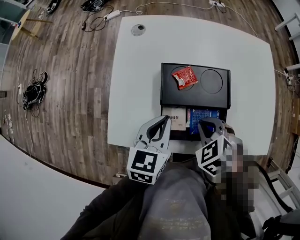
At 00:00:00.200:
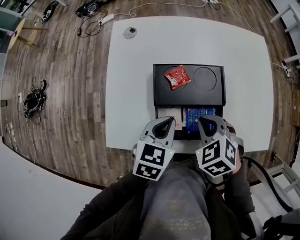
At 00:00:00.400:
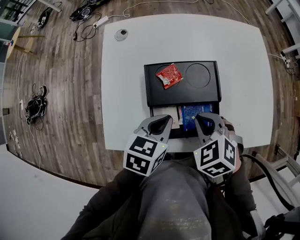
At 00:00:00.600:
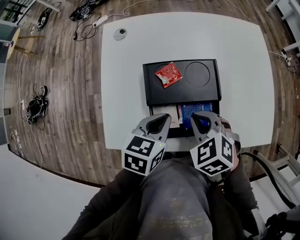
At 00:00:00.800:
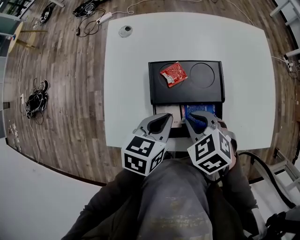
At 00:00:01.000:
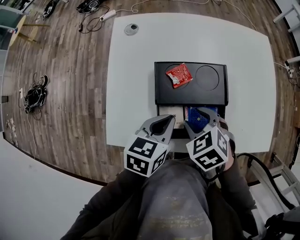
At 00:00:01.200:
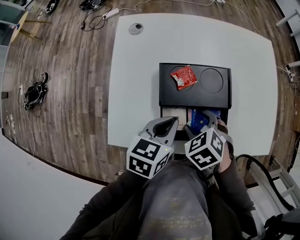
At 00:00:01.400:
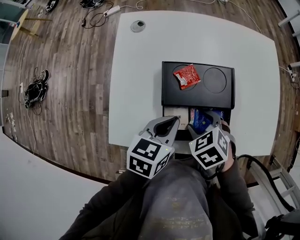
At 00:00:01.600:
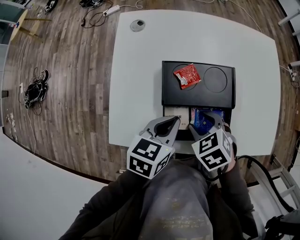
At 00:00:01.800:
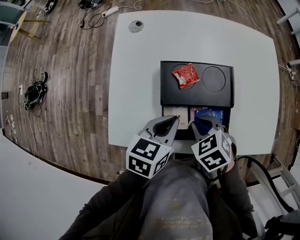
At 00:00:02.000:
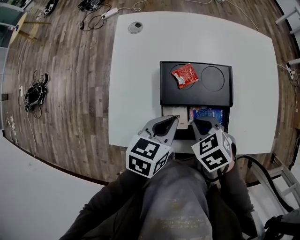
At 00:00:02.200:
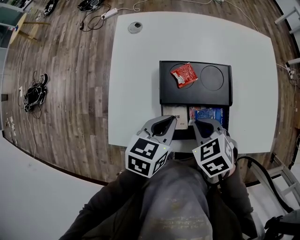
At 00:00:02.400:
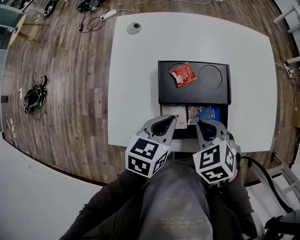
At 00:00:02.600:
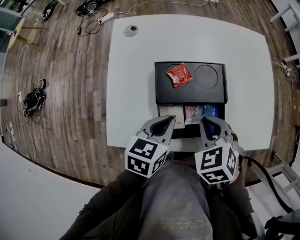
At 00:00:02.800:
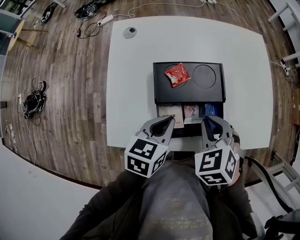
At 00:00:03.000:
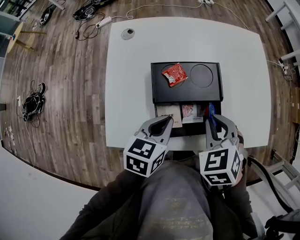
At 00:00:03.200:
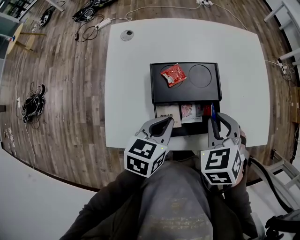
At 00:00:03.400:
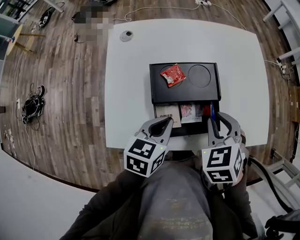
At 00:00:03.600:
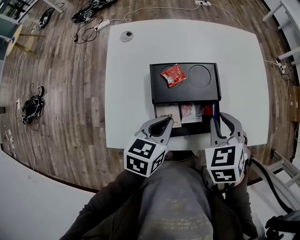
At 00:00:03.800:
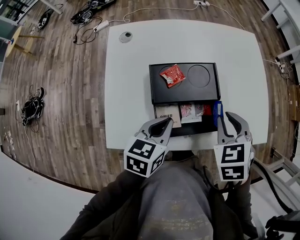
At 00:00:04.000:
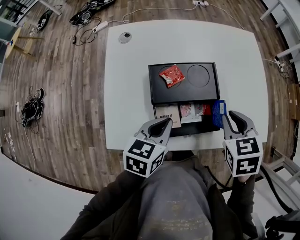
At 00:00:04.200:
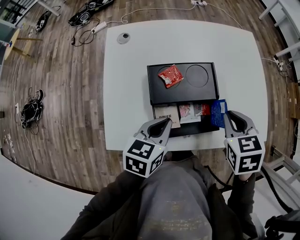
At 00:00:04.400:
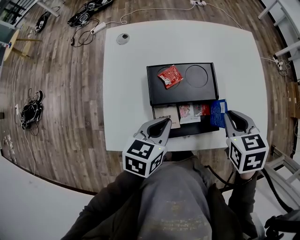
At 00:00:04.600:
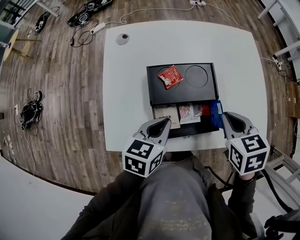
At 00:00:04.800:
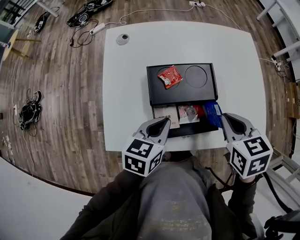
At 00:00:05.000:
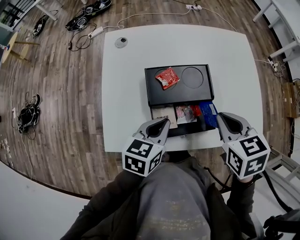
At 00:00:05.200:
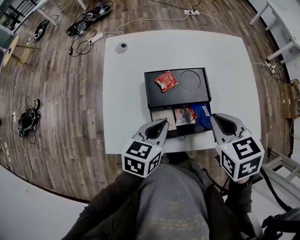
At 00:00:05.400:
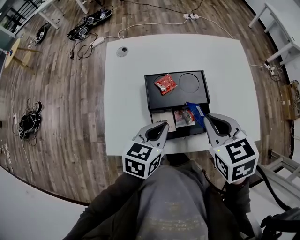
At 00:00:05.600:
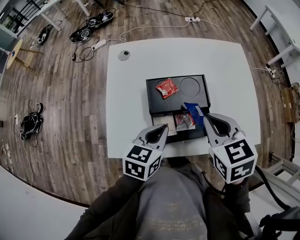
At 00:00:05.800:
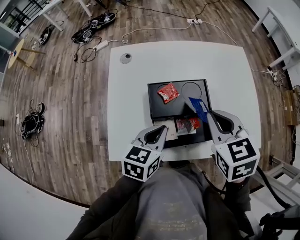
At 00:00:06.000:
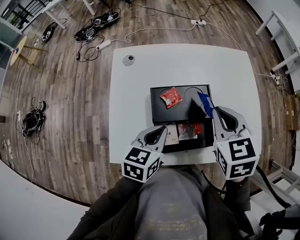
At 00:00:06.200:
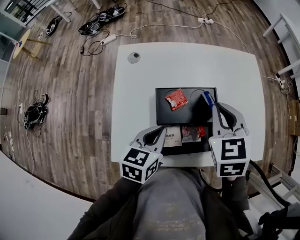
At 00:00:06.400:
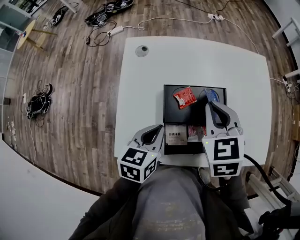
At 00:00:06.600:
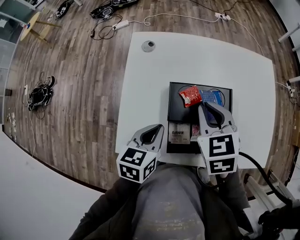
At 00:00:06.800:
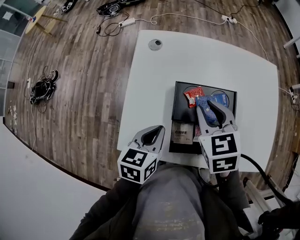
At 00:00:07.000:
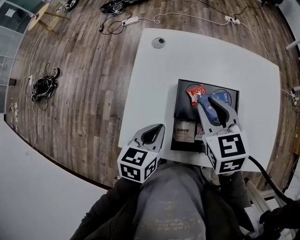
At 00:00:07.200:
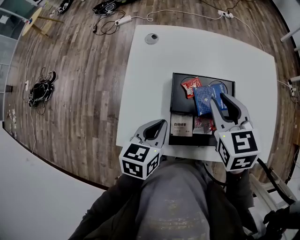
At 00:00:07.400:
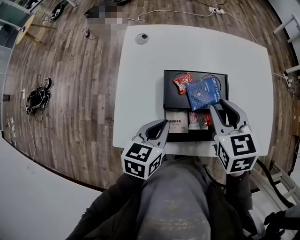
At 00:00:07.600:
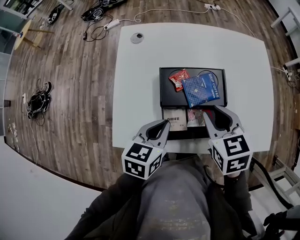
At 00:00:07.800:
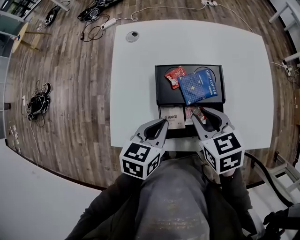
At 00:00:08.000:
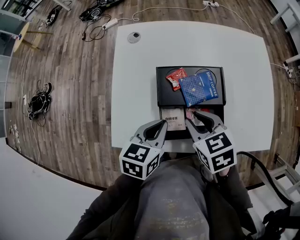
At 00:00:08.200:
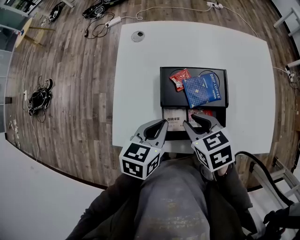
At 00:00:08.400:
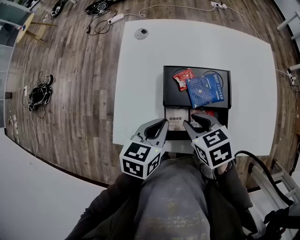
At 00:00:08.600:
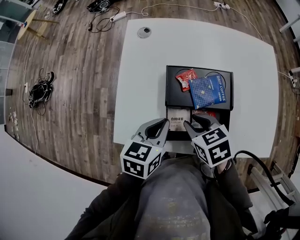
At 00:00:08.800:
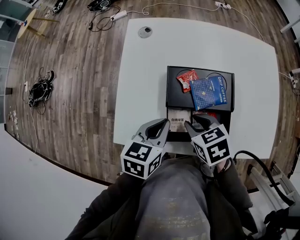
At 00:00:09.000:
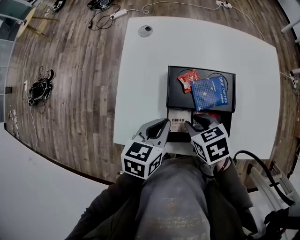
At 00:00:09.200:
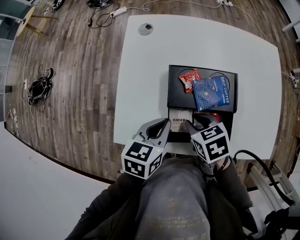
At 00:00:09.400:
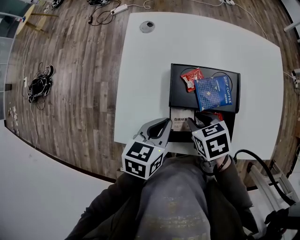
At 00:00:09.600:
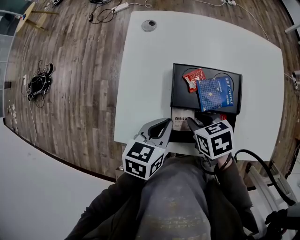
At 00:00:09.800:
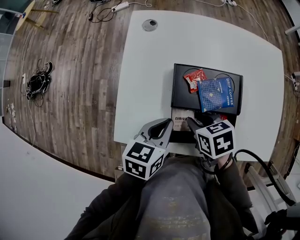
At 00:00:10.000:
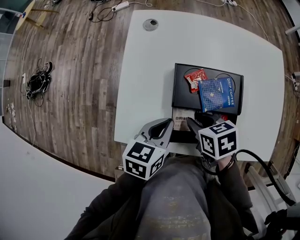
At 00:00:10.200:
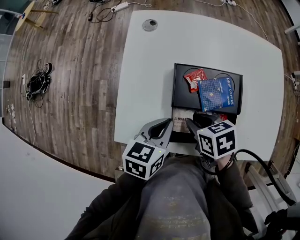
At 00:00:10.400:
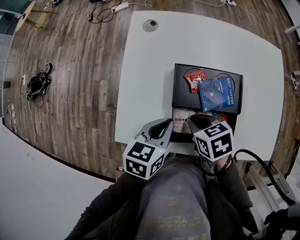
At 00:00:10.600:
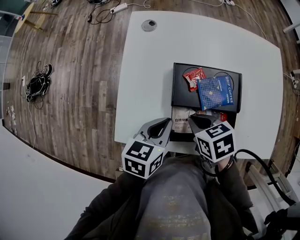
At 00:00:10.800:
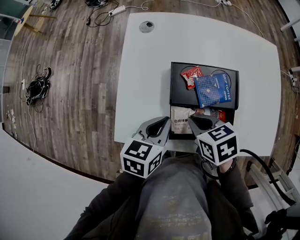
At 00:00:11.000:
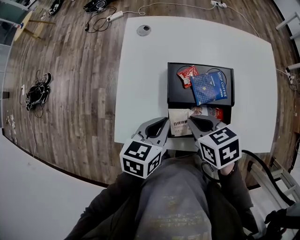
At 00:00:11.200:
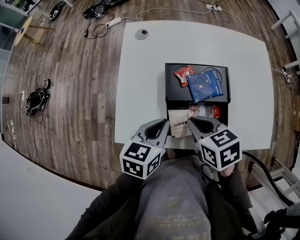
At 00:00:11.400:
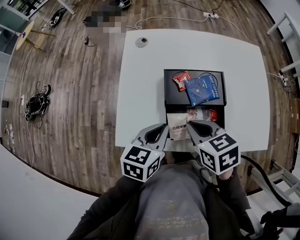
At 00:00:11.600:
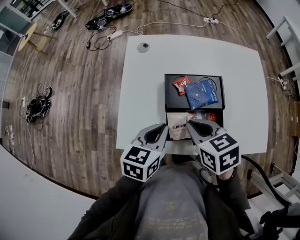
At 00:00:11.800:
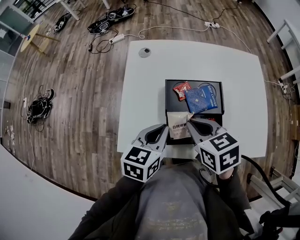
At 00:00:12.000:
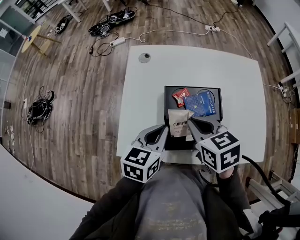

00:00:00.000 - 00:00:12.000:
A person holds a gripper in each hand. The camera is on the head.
00:00:00.000 - 00:00:01.600: The right gripper opens up.
00:00:01.600 - 00:00:03.000: The right gripper goes some 10 cm upward and to the right, rotates about 20 degrees, and closes.
00:00:03.000 - 00:00:04.400: The right gripper shifts some 5 cm to the right, and rotates about 30 degrees.
00:00:04.400 - 00:00:06.000: The right gripper is displaced upward, to the left and forward by about 10 cm.
00:00:06.000 - 00:00:07.600: The left gripper reaches roughly 10 cm to the left, then returns; the right gripper travels downward by some 10 cm, goes to the left and returns, some 10 cm each way, and opens its fingers.
00:00:07.600 - 00:00:09.000: The right gripper is displaced downward and to the left by roughly 10 cm, and turns by approximately 20 degrees.
00:00:09.000 - 00:00:10.400: The grippers make only small movements.
00:00:10.400 - 00:00:12.000: The right gripper moves upward, roughly 15 cm, and changes its angle by some 20 degrees. The left gripper travels upward by roughly 5 cm.

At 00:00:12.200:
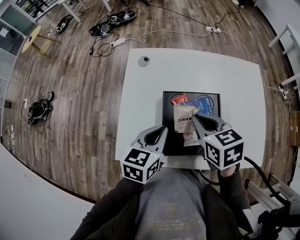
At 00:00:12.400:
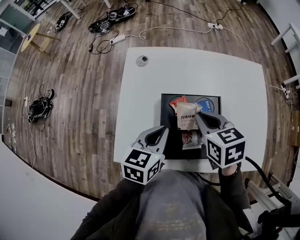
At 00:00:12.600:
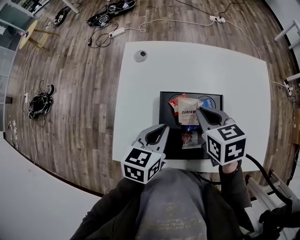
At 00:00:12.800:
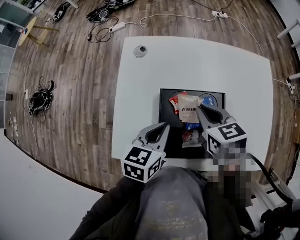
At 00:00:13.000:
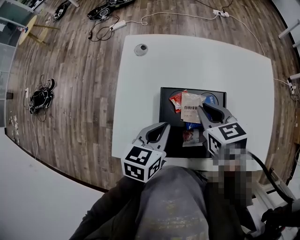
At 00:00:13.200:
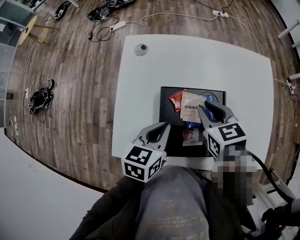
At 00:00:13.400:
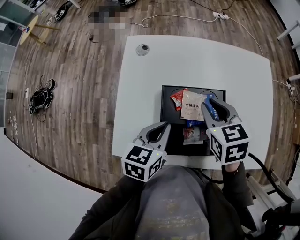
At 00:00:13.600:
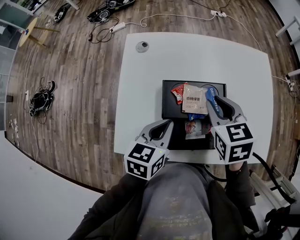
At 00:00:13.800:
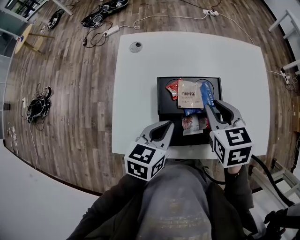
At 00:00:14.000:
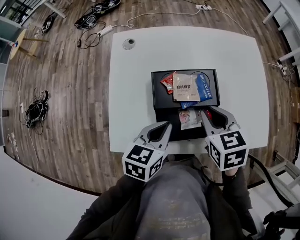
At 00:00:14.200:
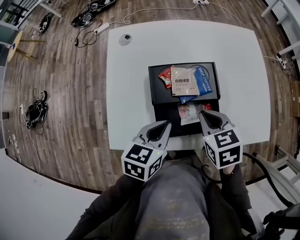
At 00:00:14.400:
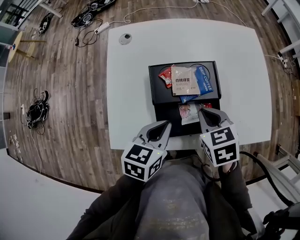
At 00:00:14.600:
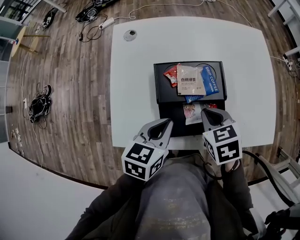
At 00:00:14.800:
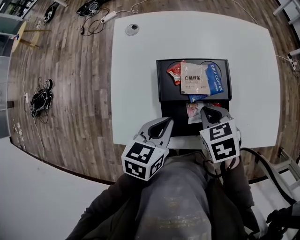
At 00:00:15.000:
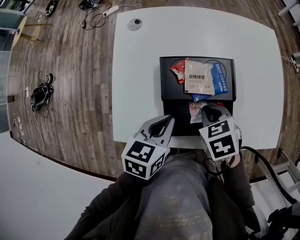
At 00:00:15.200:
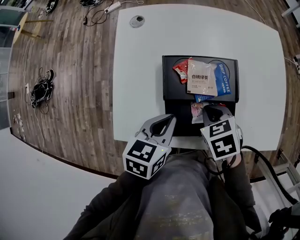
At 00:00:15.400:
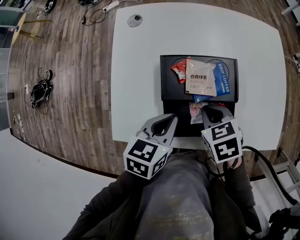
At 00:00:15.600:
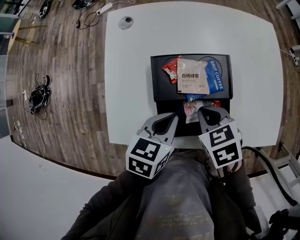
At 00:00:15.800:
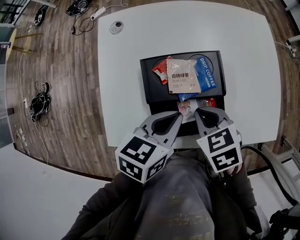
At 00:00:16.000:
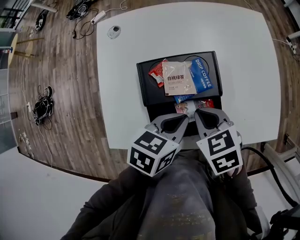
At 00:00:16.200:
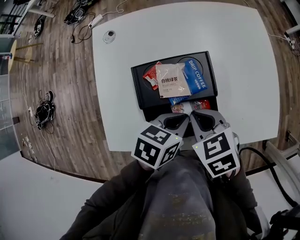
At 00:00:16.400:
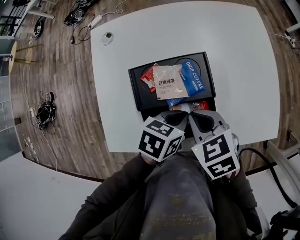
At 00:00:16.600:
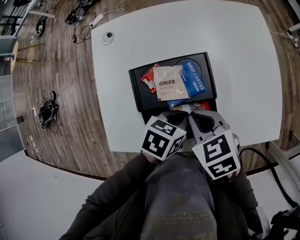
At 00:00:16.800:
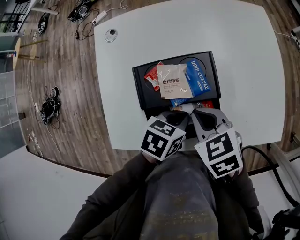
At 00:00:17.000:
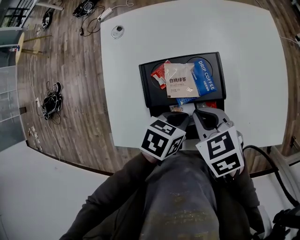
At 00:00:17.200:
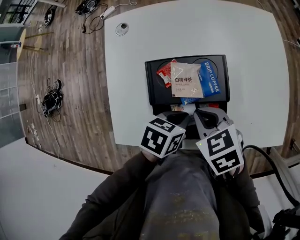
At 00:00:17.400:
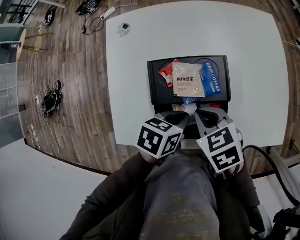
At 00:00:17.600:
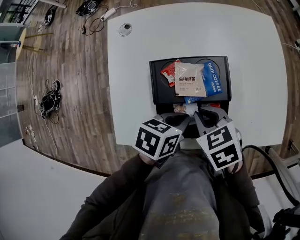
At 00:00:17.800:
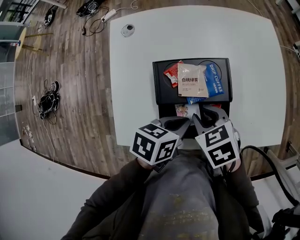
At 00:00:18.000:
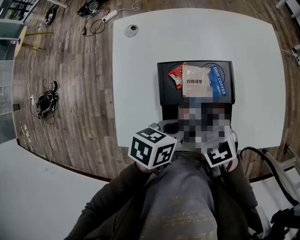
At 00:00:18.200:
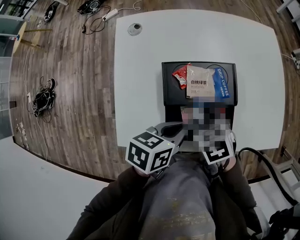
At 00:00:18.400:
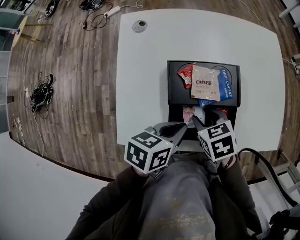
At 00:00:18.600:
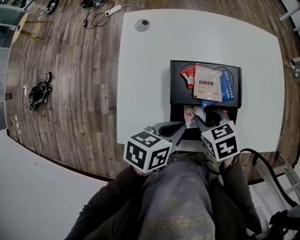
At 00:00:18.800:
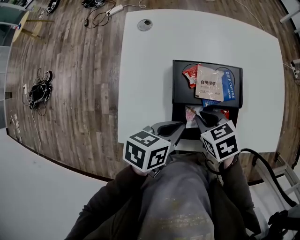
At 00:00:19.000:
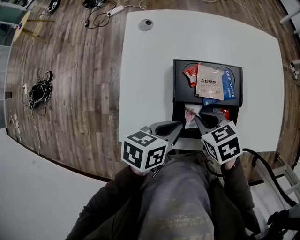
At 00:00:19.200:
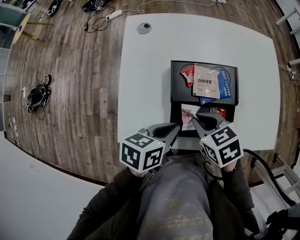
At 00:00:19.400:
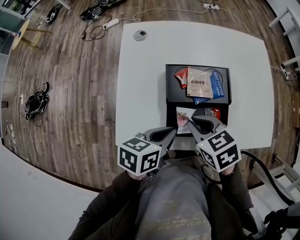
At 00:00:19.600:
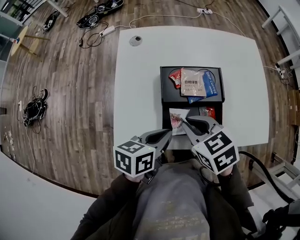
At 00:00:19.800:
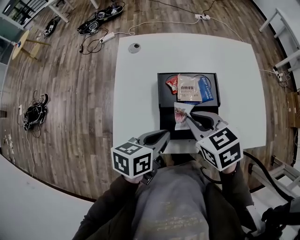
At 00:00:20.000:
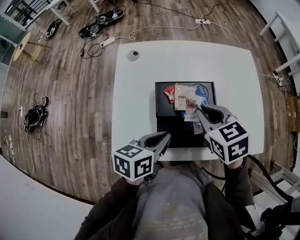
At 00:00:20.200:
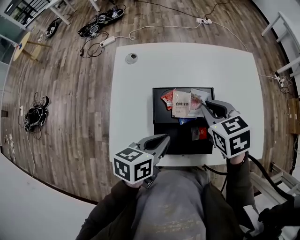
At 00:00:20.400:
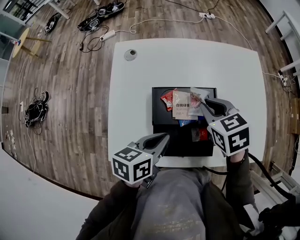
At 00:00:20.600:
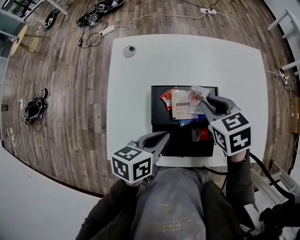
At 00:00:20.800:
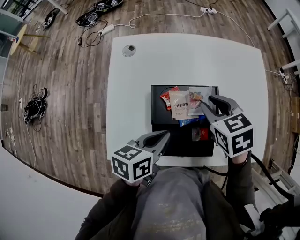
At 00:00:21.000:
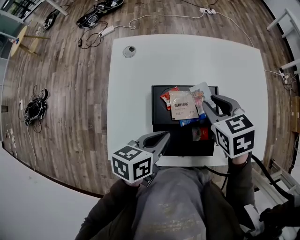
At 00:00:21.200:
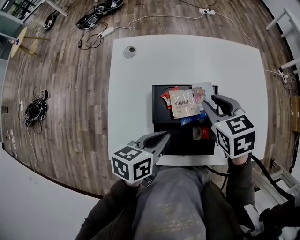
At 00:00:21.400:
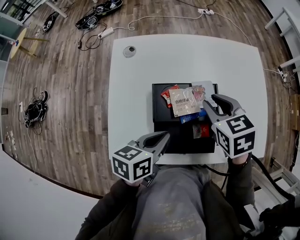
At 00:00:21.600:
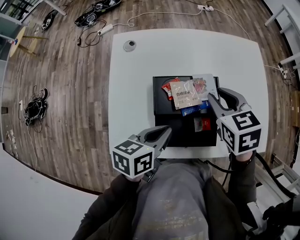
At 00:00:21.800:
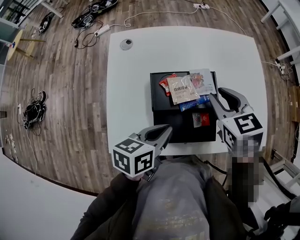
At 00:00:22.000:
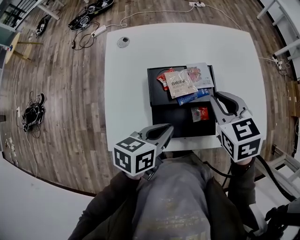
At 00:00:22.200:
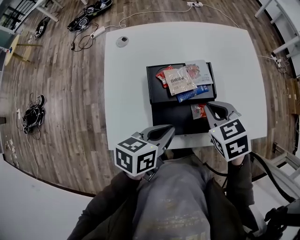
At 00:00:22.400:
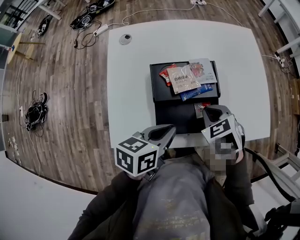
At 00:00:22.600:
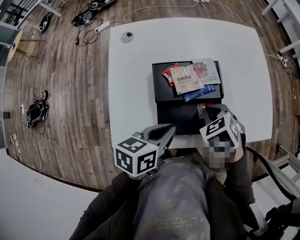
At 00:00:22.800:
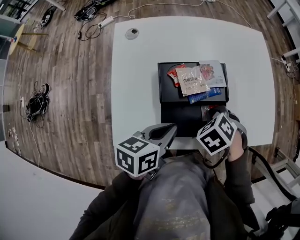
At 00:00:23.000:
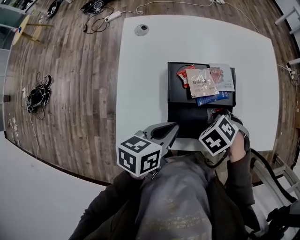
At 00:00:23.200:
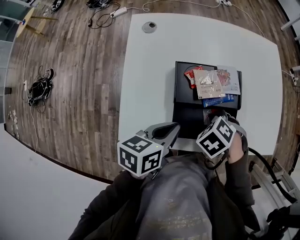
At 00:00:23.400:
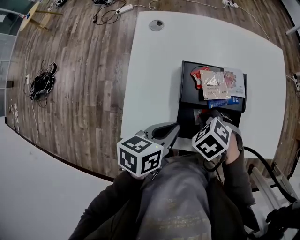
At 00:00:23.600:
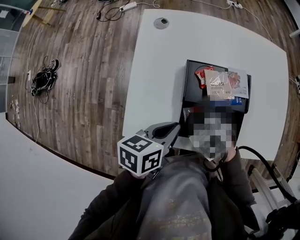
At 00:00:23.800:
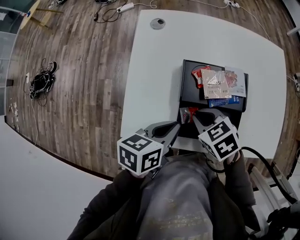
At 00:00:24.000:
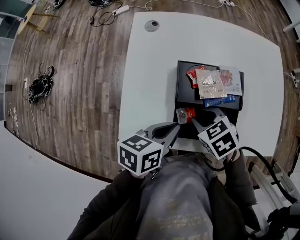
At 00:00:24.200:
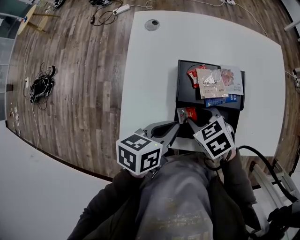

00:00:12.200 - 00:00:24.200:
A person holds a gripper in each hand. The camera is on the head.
00:00:12.200 - 00:00:13.800: The right gripper moves to the right, some 5 cm.
00:00:13.800 - 00:00:15.200: The right gripper shifts roughly 15 cm downward and backward, and changes its angle by about 30 degrees.
00:00:15.200 - 00:00:16.600: The right gripper goes approximately 5 cm upward. Meanwhile the left gripper heads to the right, covering some 10 cm, and turns by approximately 30 degrees.
00:00:16.600 - 00:00:18.200: The right gripper moves approximately 5 cm, and opens; the left gripper shifts some 10 cm to the left and upward.
00:00:18.200 - 00:00:19.800: The left gripper moves roughly 5 cm. Meanwhile the right gripper moves upward, about 10 cm, and closes its fingers.
00:00:19.800 - 00:00:21.200: The right gripper shifts approximately 15 cm forward and to the right; the left gripper heads forward, covering some 5 cm.
00:00:21.200 - 00:00:22.600: The left gripper shifts by roughly 5 cm, while the right gripper travels backward and downward by approximately 15 cm, rotates about 20 degrees, and closes up.
00:00:22.600 - 00:00:24.200: The left gripper changes place by approximately 5 cm. The right gripper shifts by about 10 cm, rotates about 20 degrees, and opens.
